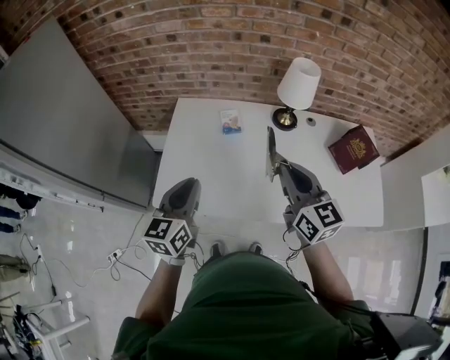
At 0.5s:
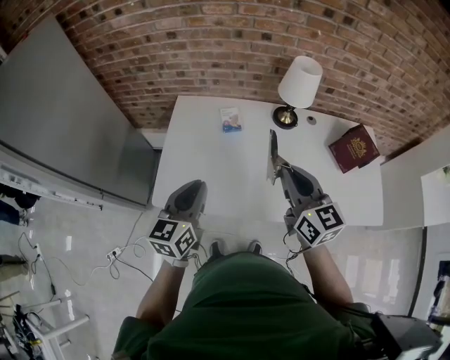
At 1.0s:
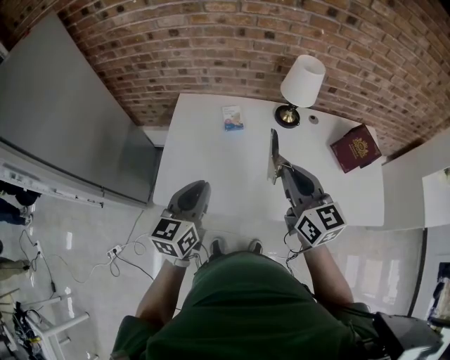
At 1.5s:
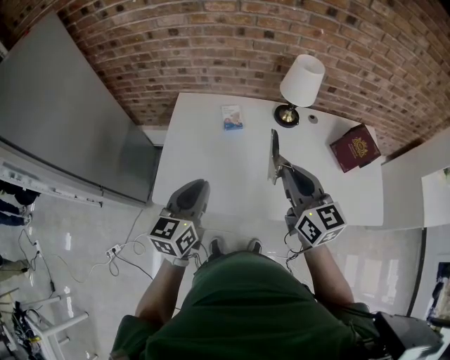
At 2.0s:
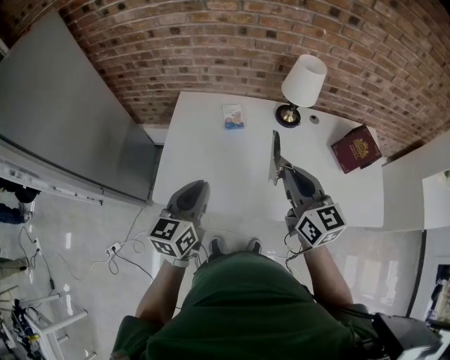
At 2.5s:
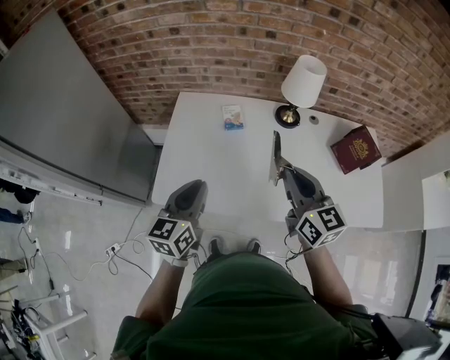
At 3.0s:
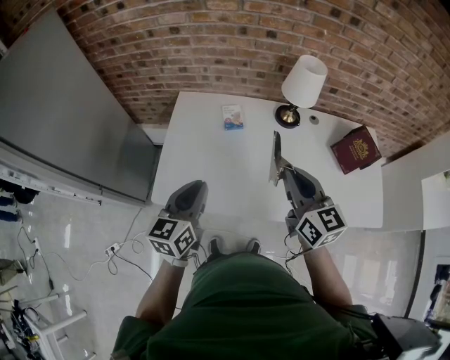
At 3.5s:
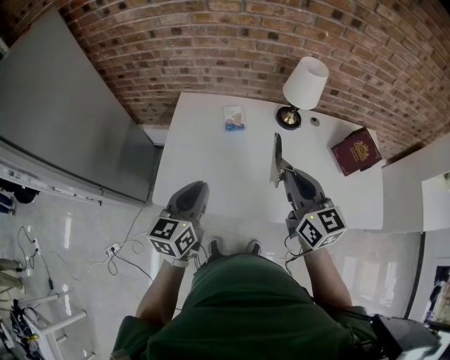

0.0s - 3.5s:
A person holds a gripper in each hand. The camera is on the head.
0.0s - 2.0s: The grippers stay close to where they were, moving slightly.
2.0s - 3.5s: Both grippers stay put.

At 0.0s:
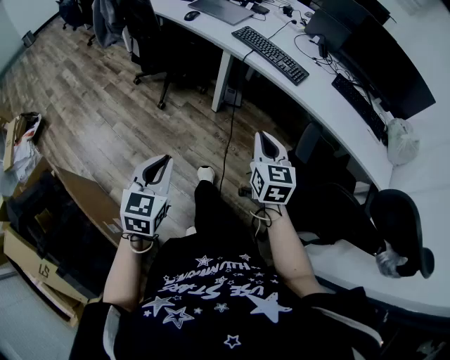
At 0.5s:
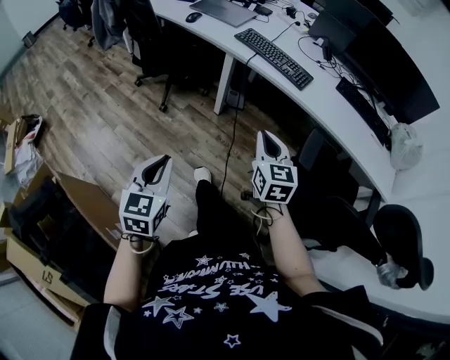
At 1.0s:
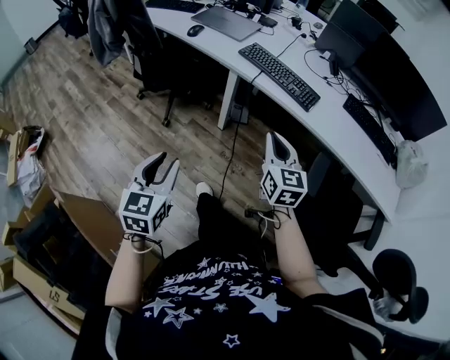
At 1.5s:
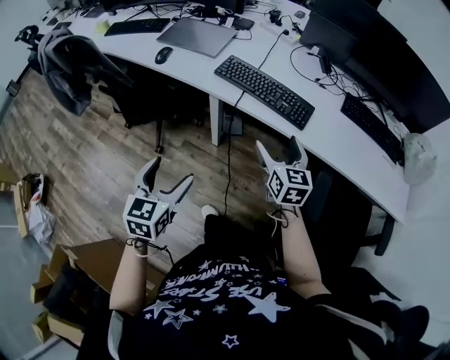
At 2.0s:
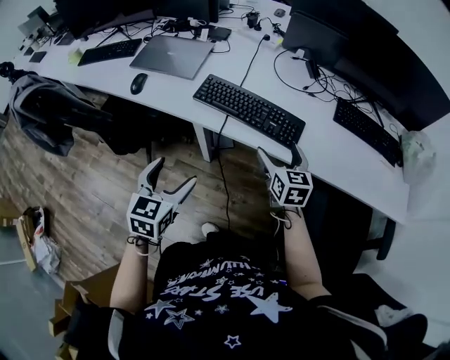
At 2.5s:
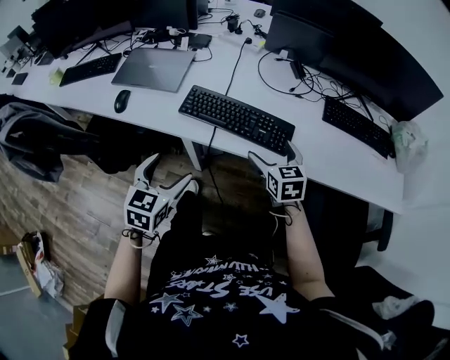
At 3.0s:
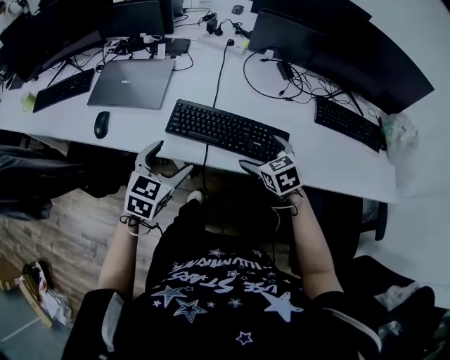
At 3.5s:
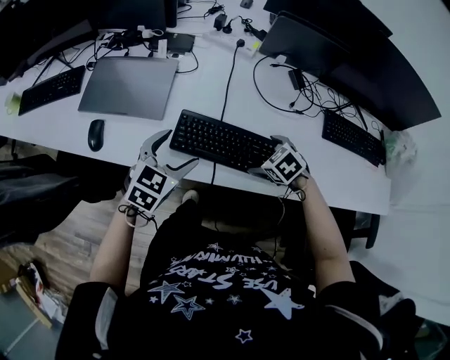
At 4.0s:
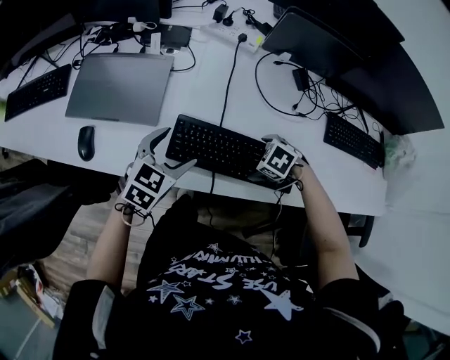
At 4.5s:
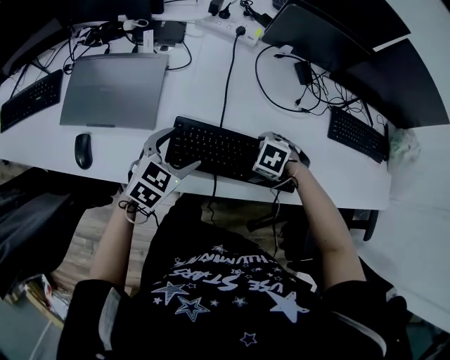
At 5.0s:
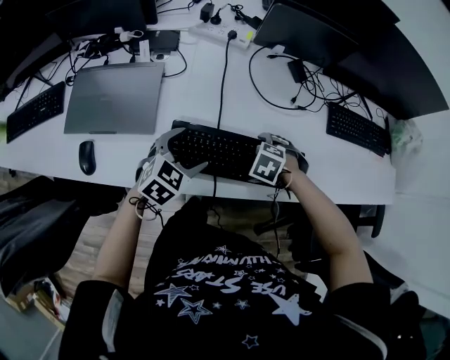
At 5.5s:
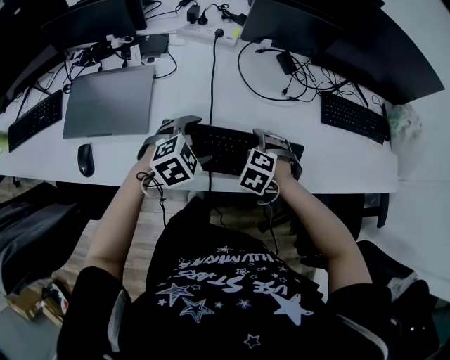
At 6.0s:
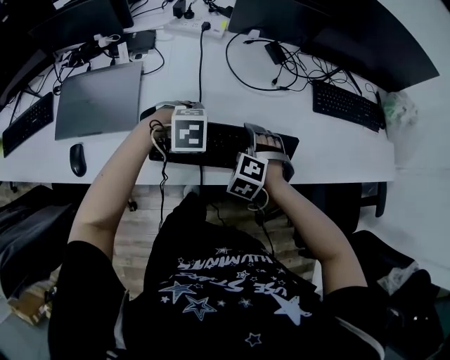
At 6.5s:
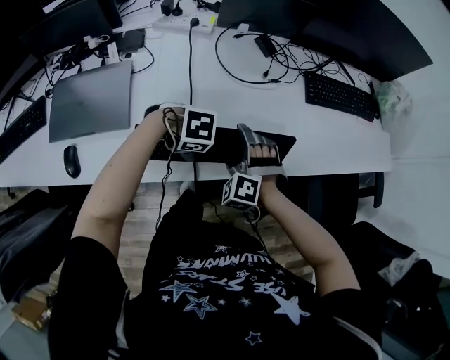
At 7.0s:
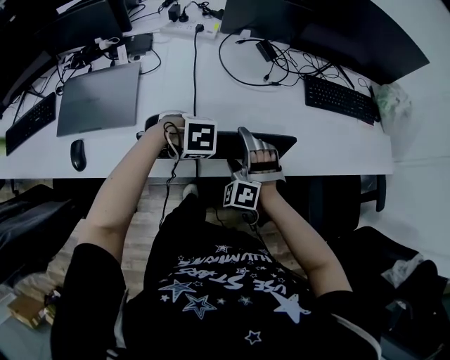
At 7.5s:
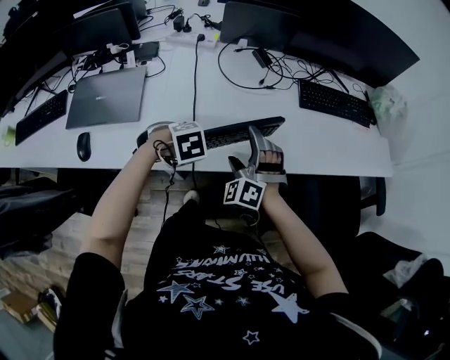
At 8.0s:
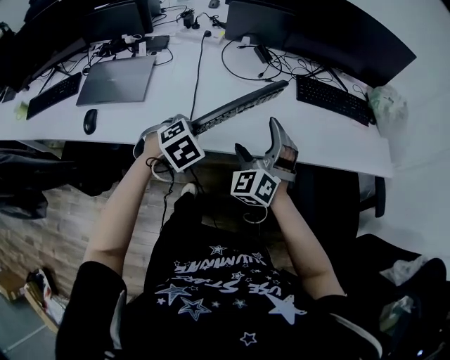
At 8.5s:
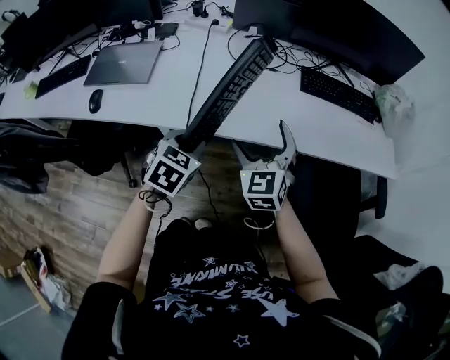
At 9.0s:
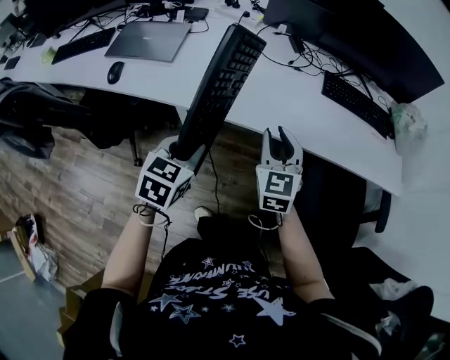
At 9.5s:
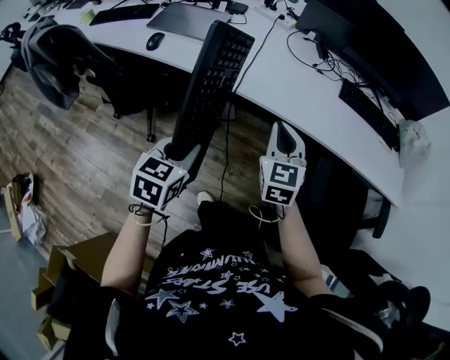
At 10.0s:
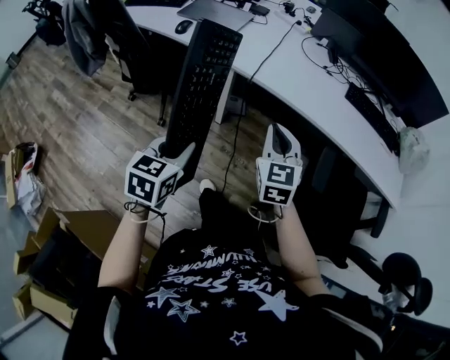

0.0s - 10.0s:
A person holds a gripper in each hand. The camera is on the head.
0.0s - 2.0s: Both grippers are carried forward, approximately 40 cm. The left gripper turns by some 20 degrees, and opens its fingers, while the right gripper opens up.
2.0s - 4.0s: The left gripper moves some 35 cm, and rotates some 30 degrees, while the right gripper shifts by about 20 cm, and points its fingers roughly 60 degrees further downward.
4.0s - 6.0s: The left gripper shifts by about 15 cm, and points its fingers roughly 40 degrees further downward. The right gripper swivels approximately 30 degrees.
6.0s - 8.0s: The right gripper travels upward by about 15 cm, and angles its fingers upward, by approximately 50 degrees. The left gripper moves approximately 15 cm, turns by about 40 degrees, and closes its fingers.
8.0s - 10.0s: Both grippers travel together backward, about 35 cm. The right gripper swivels about 40 degrees, and closes up, while the left gripper rolls counterclockwise, seen from behind, by roughly 60 degrees.

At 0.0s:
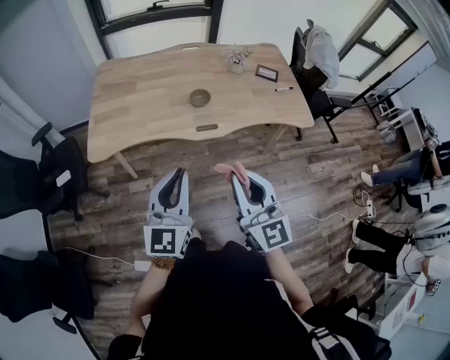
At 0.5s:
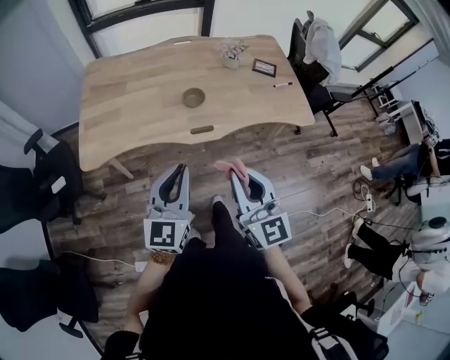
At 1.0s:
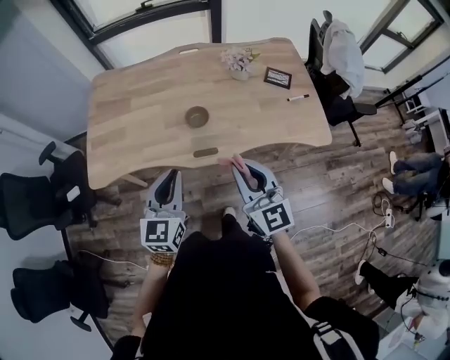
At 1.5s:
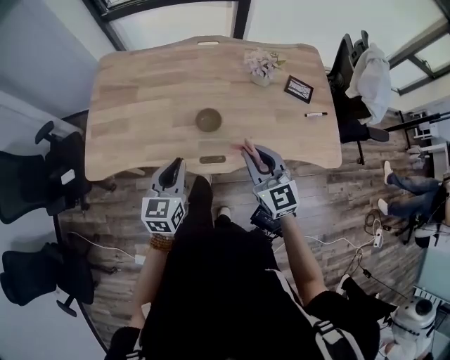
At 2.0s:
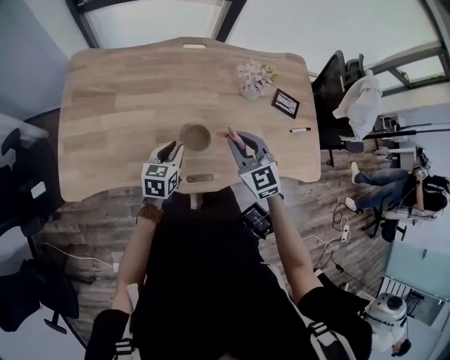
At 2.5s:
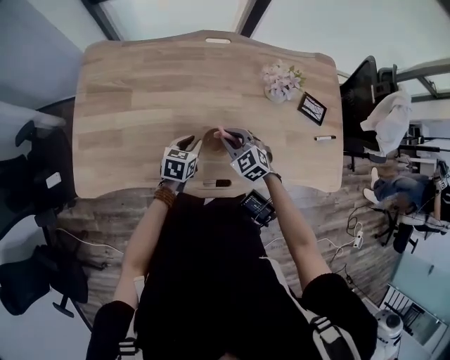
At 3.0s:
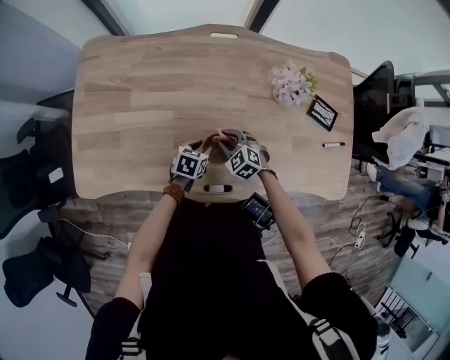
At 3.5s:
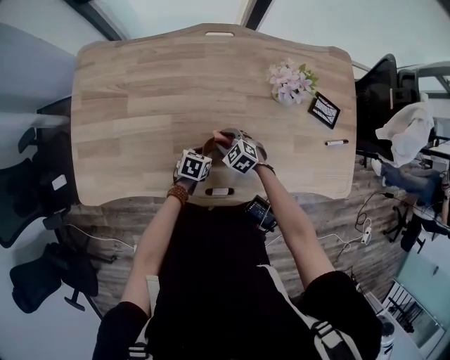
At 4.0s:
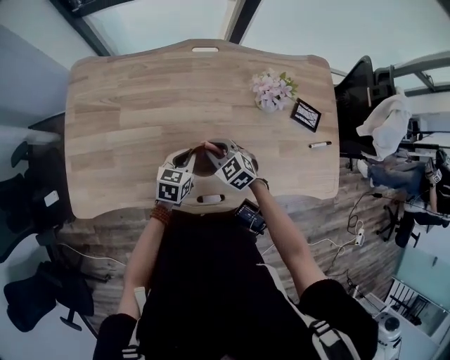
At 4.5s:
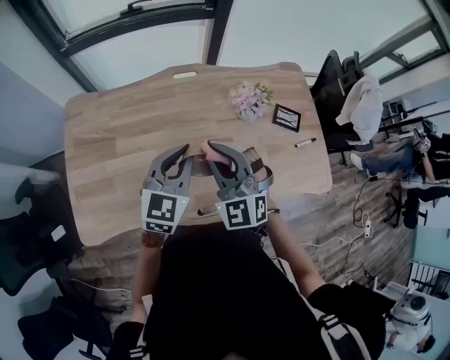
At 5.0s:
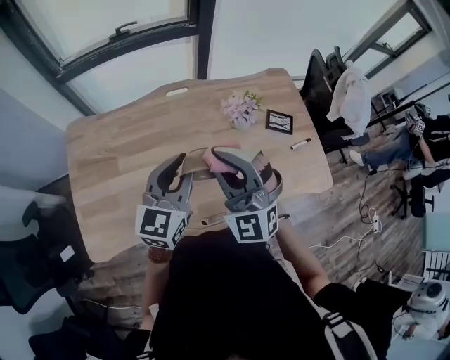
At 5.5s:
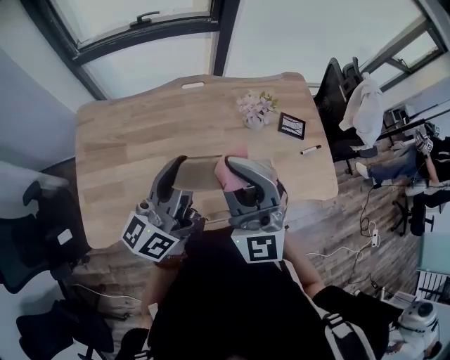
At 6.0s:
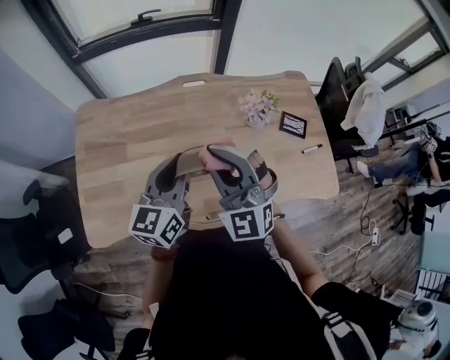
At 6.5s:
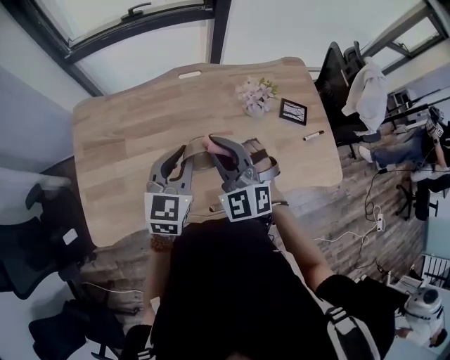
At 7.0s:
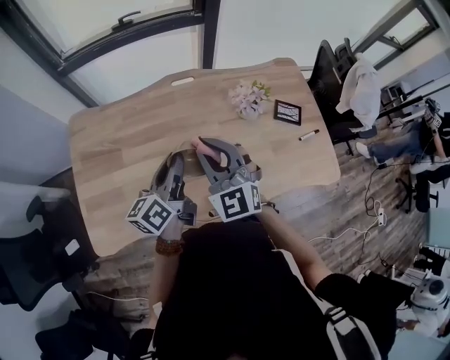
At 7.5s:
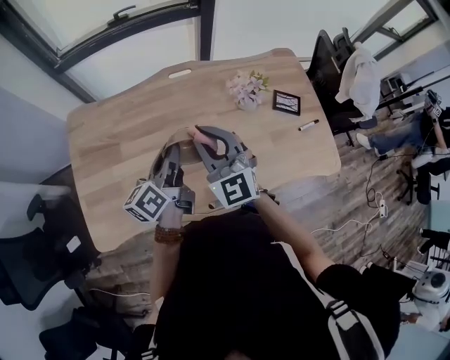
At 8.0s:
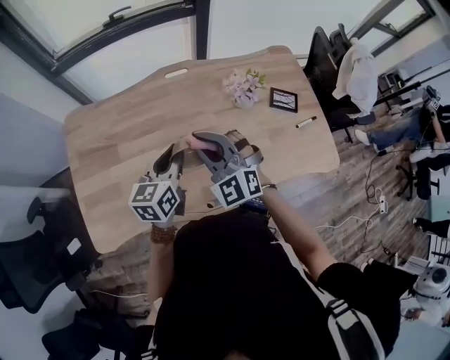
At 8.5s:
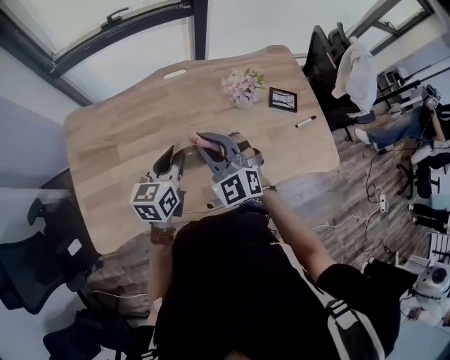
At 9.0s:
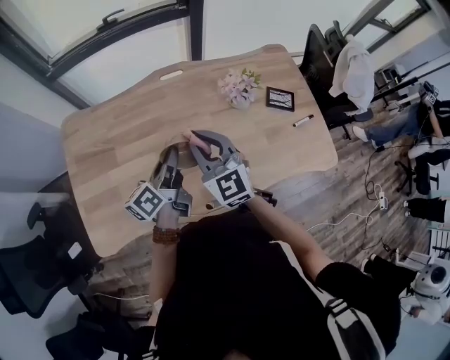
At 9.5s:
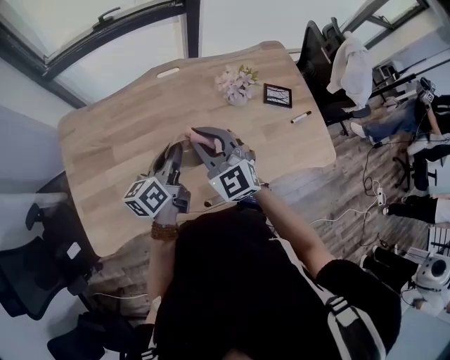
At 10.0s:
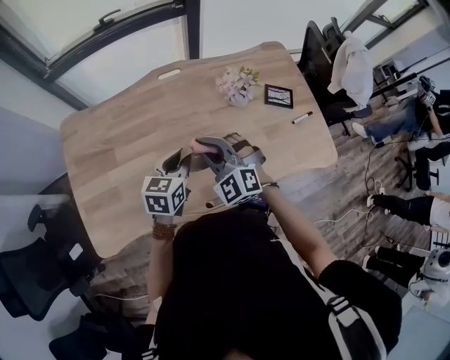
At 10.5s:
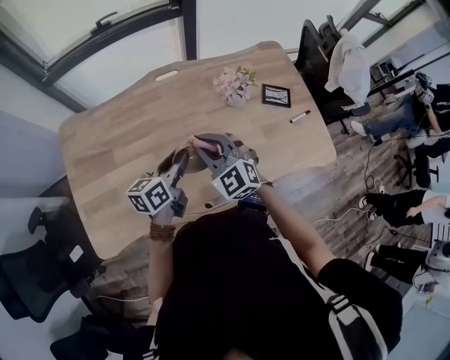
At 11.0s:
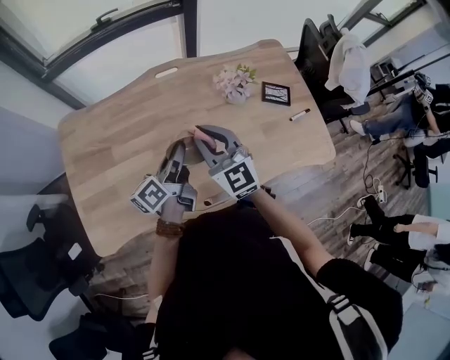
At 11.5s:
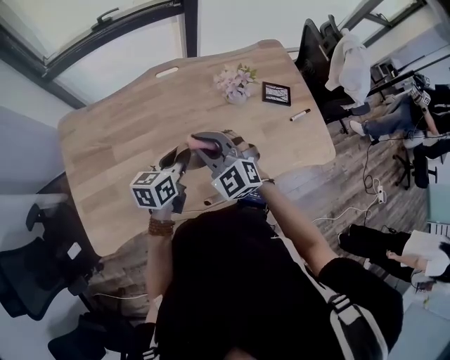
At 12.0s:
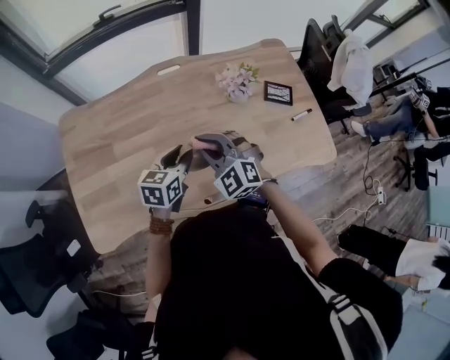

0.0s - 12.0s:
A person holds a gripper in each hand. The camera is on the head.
0.0s - 2.0s: Both grippers are carried forward, roughly 50 cm. The right gripper changes its angle by approximately 30 degrees, while the left gripper travels downward by roughly 30 cm, and points its fingers some 30 degrees further downward.
2.0s - 4.0s: The left gripper shifts roughly 5 cm forward, and moves about 20 cm downward and comes back. The right gripper moves downward, forward and to the left, about 20 cm, changes its angle by some 30 degrees, and opens and closes again.
4.0s - 6.0s: Both grippers travel together upward, some 30 cm. The right gripper angles its fingers upward, by approximately 40 degrees, while the left gripper tips its fingers upward by approximately 30 degrees.
6.0s - 8.0s: Both grippers travel together downward, about 10 cm.
8.0s - 10.0s: The grippers both shift downward by some 5 cm.

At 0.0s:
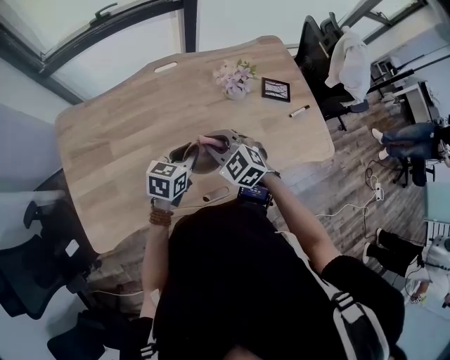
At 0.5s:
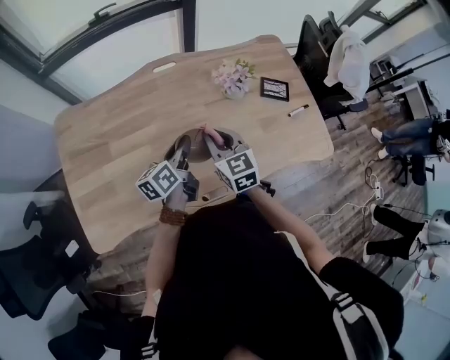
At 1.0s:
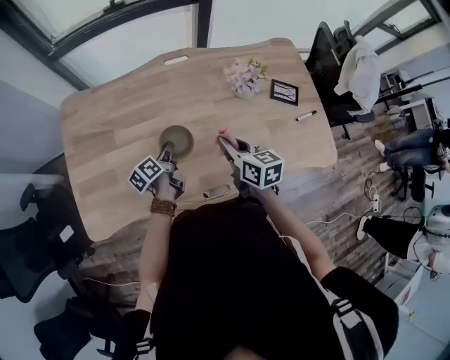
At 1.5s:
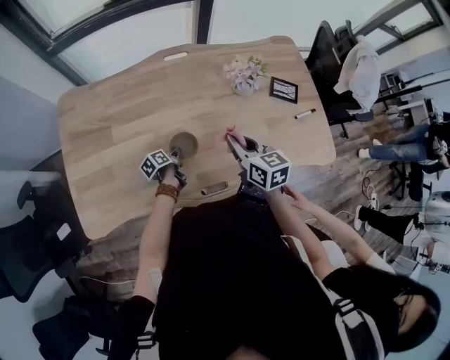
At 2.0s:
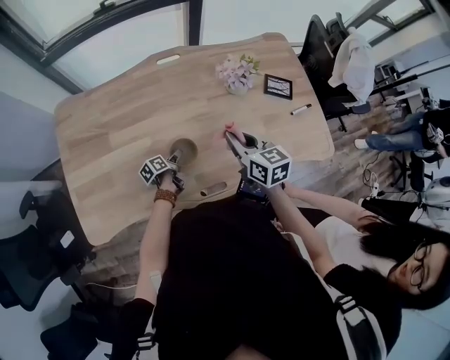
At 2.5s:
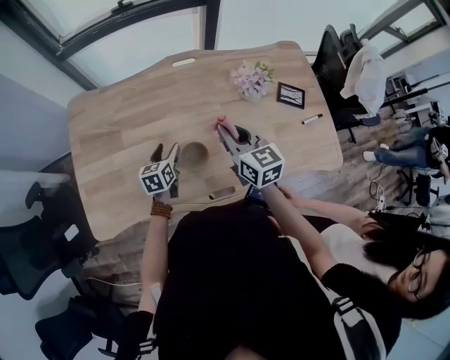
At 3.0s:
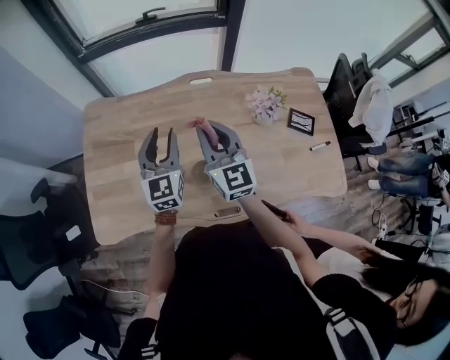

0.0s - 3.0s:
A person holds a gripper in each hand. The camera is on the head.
0.0s - 1.5s: The left gripper goes some 25 cm downward, and twists roughly 70 degrees counterclockwise, seen from behind; the right gripper heads to the right, covering some 5 cm, and rotates around the line of its fingers by approximately 50 degrees, clockwise from behind.
1.5s - 3.0s: The left gripper is displaced upward by about 35 cm, tips its fingers upward by about 40 degrees, and opens; the right gripper travels upward, to the left and forward by roughly 20 cm, and swivels approximately 40 degrees.
